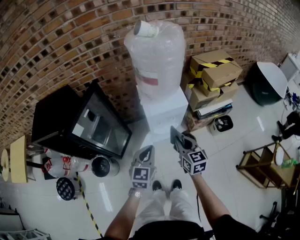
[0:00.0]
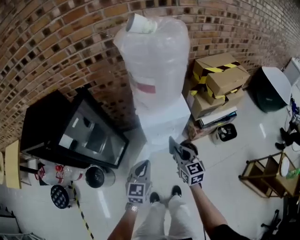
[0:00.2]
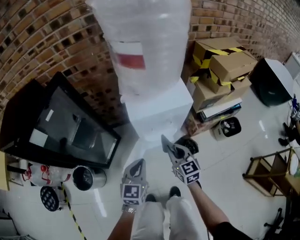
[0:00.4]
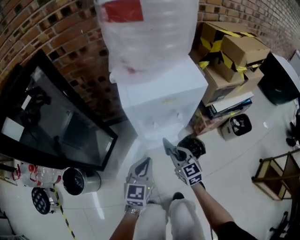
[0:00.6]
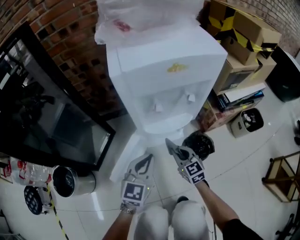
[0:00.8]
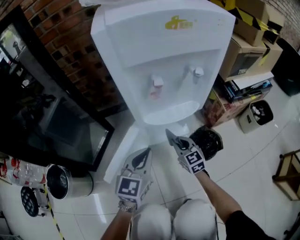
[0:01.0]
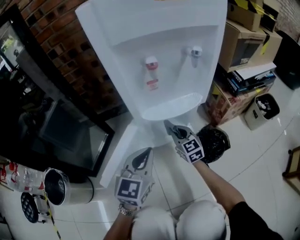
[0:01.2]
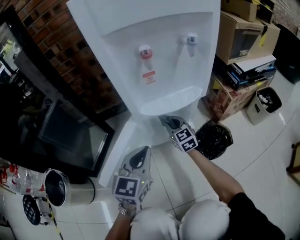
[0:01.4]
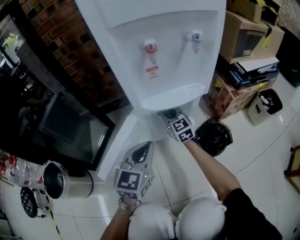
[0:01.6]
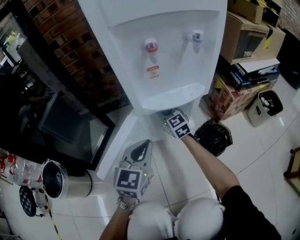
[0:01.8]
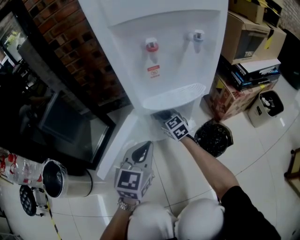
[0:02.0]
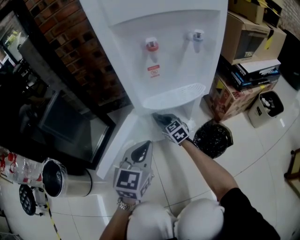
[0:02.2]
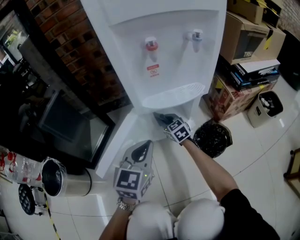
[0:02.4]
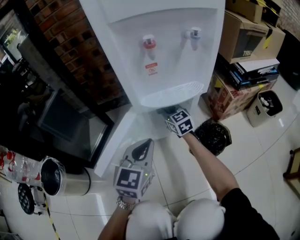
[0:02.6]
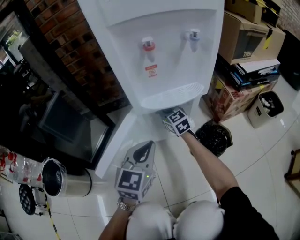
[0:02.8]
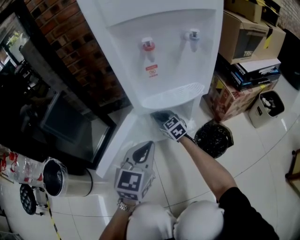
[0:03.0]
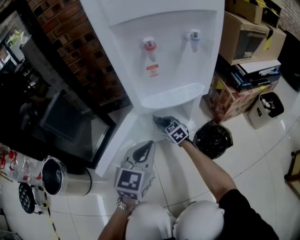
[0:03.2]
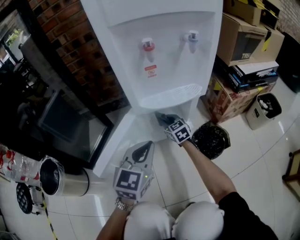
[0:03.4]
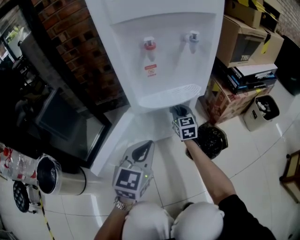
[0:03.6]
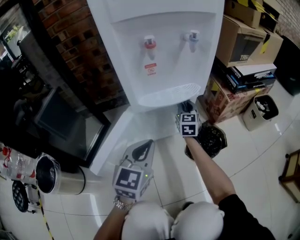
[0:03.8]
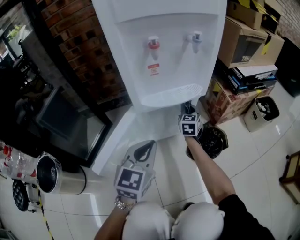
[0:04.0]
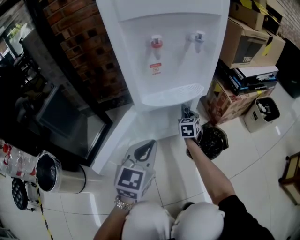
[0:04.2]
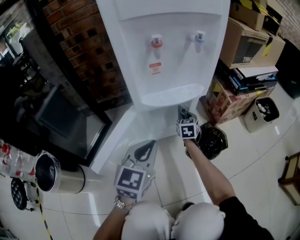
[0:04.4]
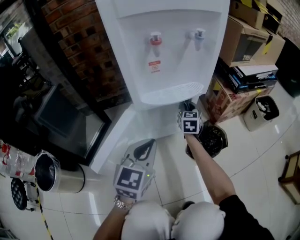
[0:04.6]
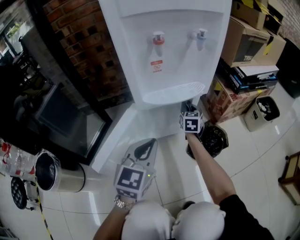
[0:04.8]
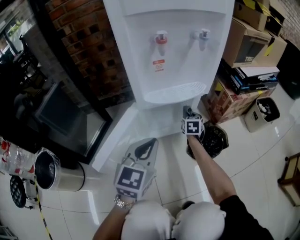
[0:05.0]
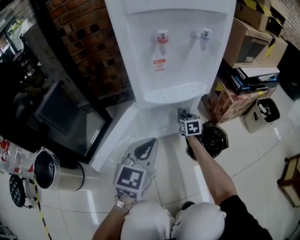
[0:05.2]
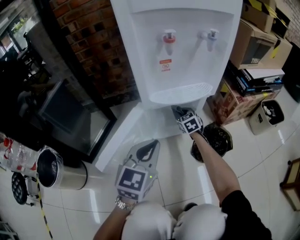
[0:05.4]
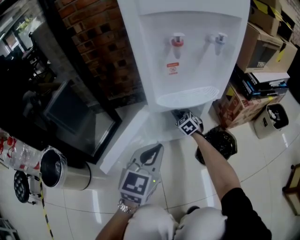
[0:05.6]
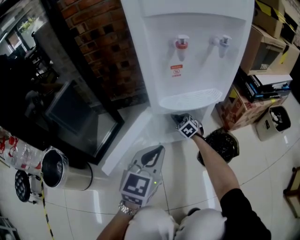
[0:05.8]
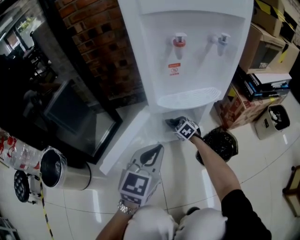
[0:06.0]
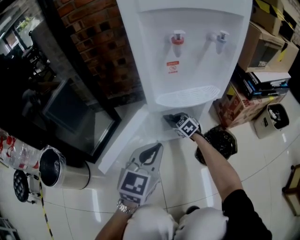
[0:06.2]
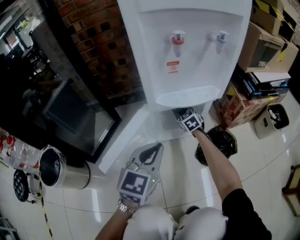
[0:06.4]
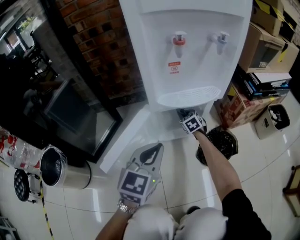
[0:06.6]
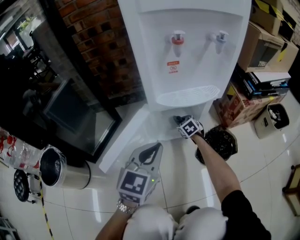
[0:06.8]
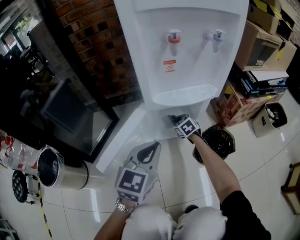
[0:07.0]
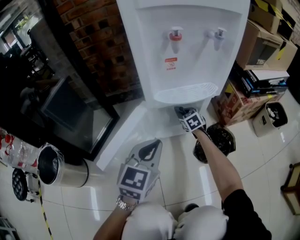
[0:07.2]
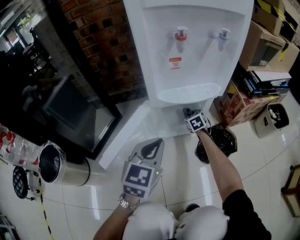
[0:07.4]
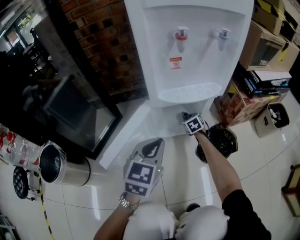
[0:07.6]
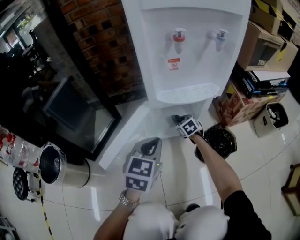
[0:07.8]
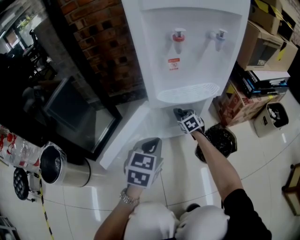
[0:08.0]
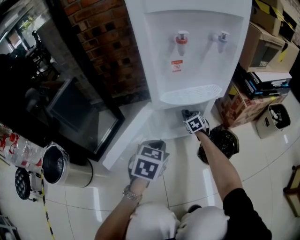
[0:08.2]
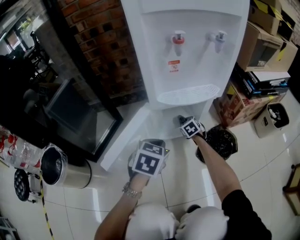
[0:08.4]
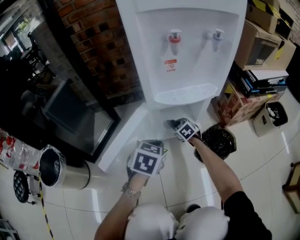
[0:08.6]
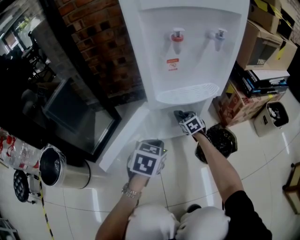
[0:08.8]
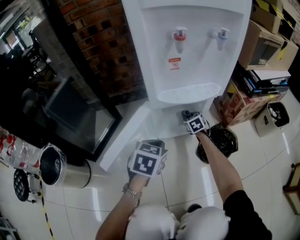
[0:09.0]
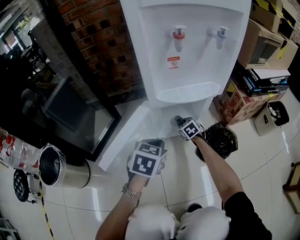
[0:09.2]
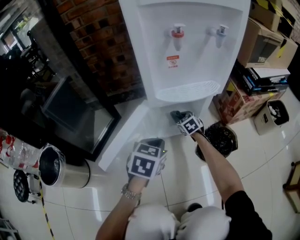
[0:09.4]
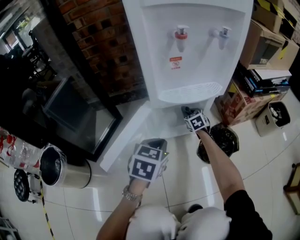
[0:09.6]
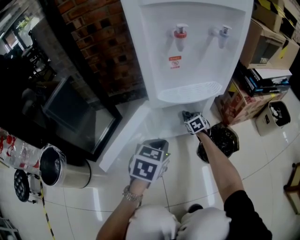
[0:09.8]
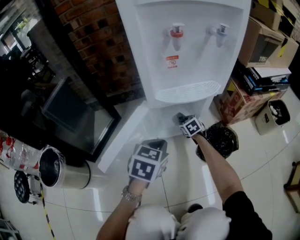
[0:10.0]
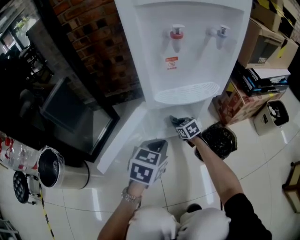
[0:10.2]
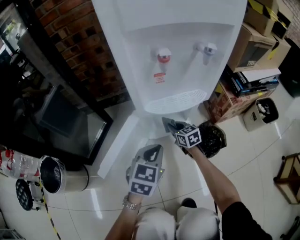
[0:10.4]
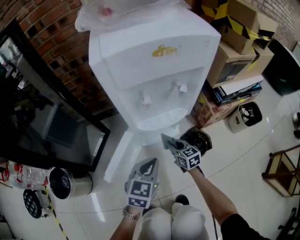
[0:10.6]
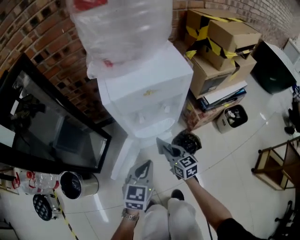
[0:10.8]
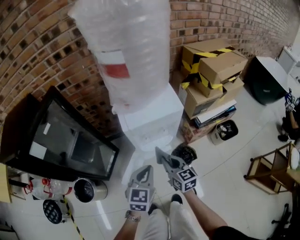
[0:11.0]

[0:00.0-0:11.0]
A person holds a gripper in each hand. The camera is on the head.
0:00.0 to 0:01.6: The two grippers go approximately 60 cm downward. The right gripper changes its angle by roughly 20 degrees.
0:01.6 to 0:03.2: The right gripper goes up and down, roughly 15 cm each way, reversing 2 times, and changes its angle by about 20 degrees.
0:03.2 to 0:04.8: The right gripper goes approximately 20 cm to the right and forward, and turns by about 40 degrees.
0:04.8 to 0:06.2: The right gripper travels to the left and downward by roughly 20 cm, and changes its angle by roughly 50 degrees.
0:06.2 to 0:07.8: The right gripper moves roughly 10 cm to the right and comes back.
0:07.8 to 0:09.4: The right gripper goes left and right, approximately 5 cm each way, reversing 3 times. The left gripper shifts about 5 cm downward.
0:09.4 to 0:11.0: The left gripper travels upward by approximately 50 cm; the right gripper moves upward and backward, approximately 60 cm, and rotates about 40 degrees.

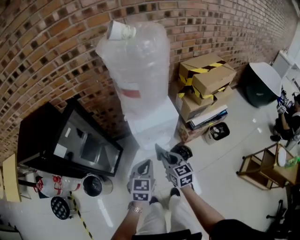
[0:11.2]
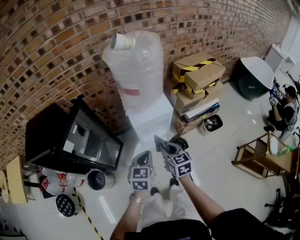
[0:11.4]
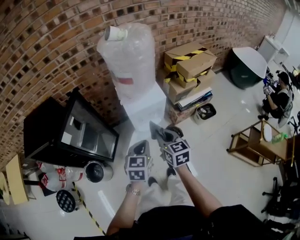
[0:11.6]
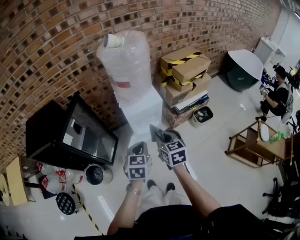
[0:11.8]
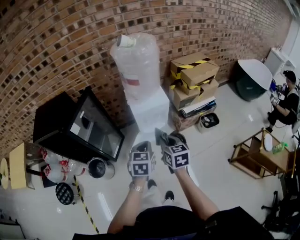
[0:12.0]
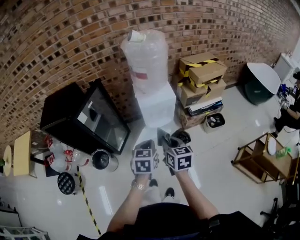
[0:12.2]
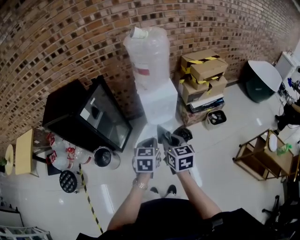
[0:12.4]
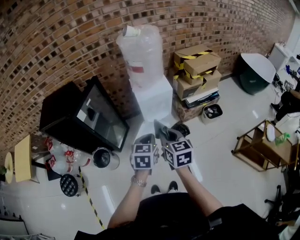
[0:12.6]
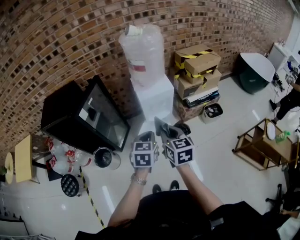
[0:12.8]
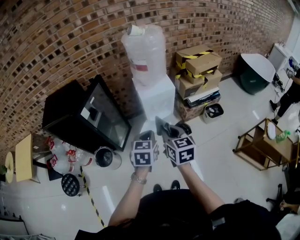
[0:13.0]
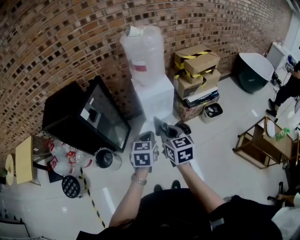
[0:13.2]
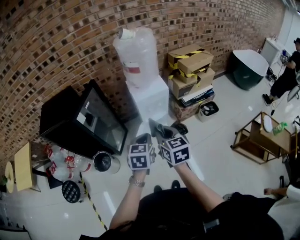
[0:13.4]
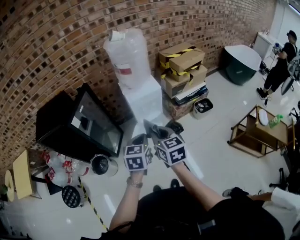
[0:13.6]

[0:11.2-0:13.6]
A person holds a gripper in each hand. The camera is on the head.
0:11.2 to 0:12.4: Both grippers travel together backward and upward, approximately 25 cm.
0:12.4 to 0:13.6: The right gripper moves roughly 5 cm.

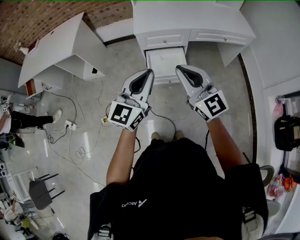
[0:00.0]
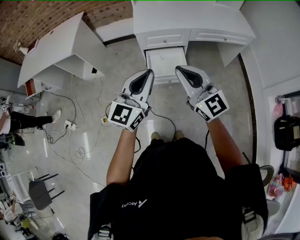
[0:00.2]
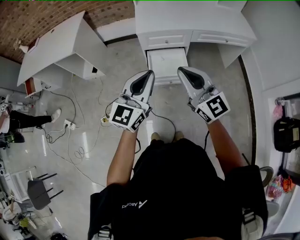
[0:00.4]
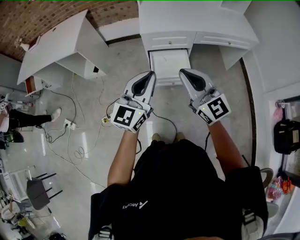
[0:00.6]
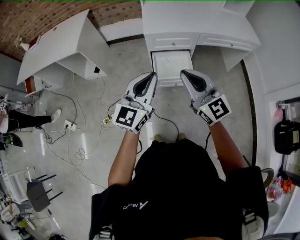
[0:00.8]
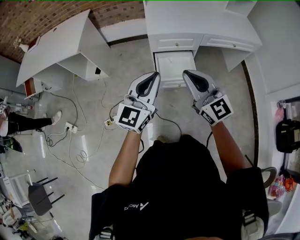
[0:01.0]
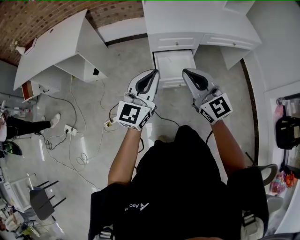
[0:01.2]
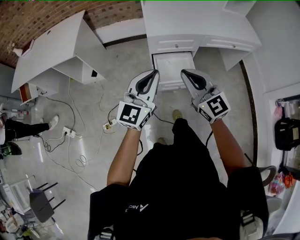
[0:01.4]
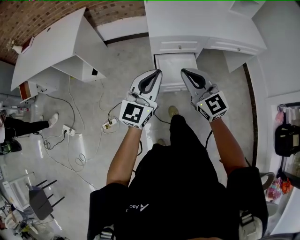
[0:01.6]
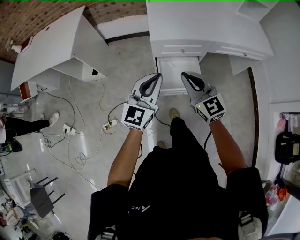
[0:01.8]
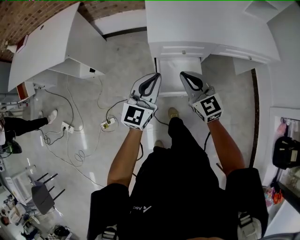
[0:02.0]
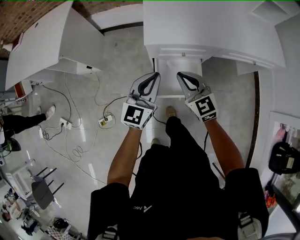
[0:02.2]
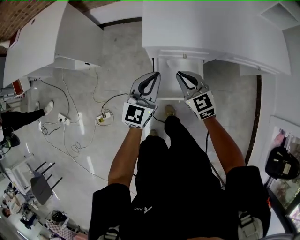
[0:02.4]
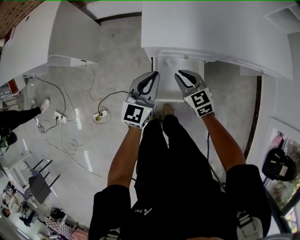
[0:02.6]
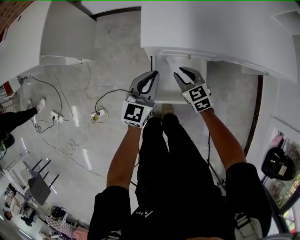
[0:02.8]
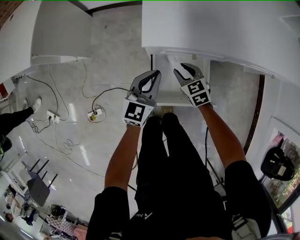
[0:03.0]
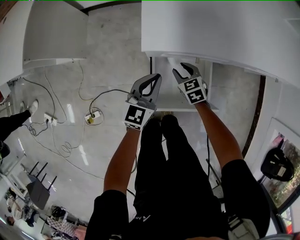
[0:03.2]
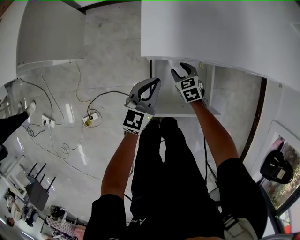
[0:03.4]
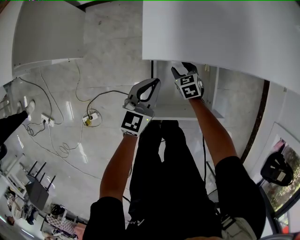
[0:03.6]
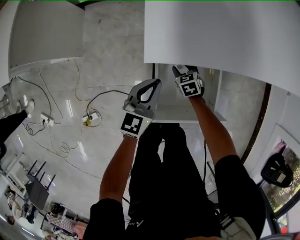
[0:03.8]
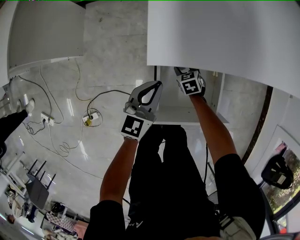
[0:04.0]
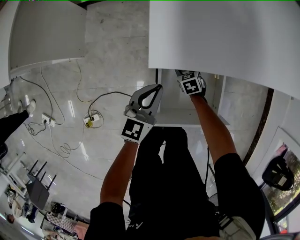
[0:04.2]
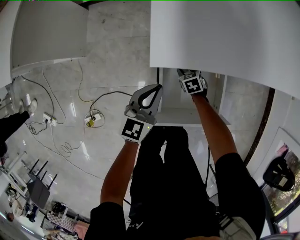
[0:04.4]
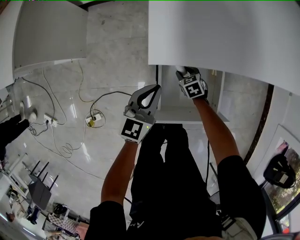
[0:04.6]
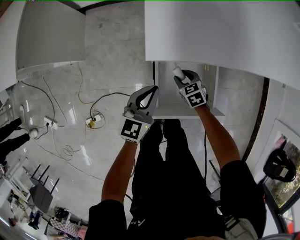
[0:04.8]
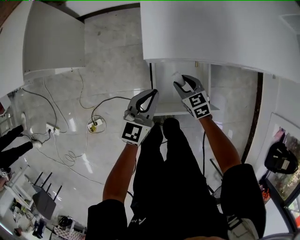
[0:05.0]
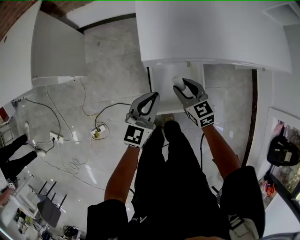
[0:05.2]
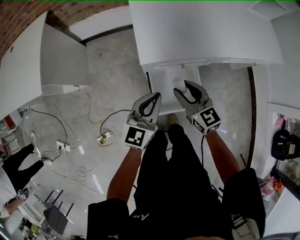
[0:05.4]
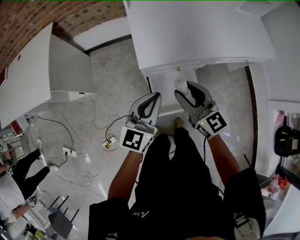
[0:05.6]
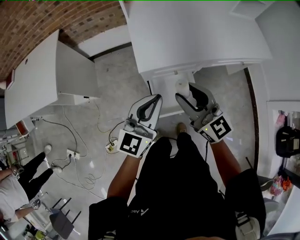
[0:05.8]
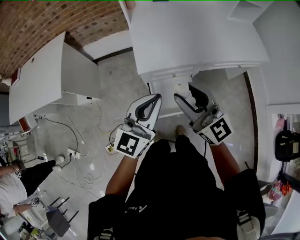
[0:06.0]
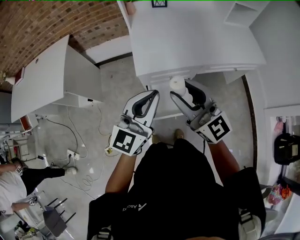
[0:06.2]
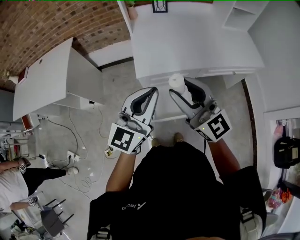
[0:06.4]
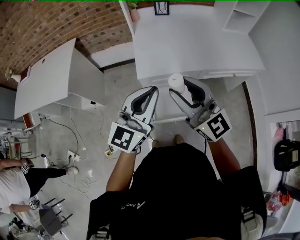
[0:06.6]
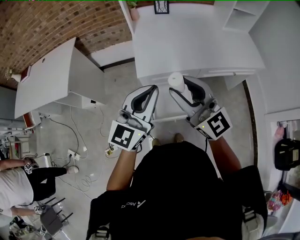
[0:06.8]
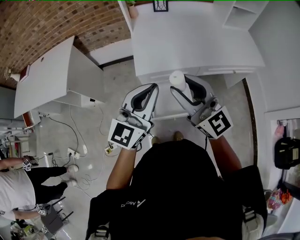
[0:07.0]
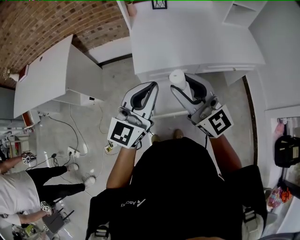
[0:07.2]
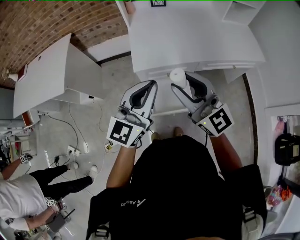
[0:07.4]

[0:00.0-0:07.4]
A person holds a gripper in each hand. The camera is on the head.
0:00.0 to 0:01.4: The left gripper heads to the left and forward, covering roughly 15 cm. Meanwhile the right gripper heads to the left, forward and downward, covering some 15 cm.
0:01.4 to 0:03.0: Both grippers move downward and forward, about 60 cm. The left gripper turns by about 20 degrees, while the right gripper points its fingers roughly 40 degrees further downward, and opens its fingers.
0:03.0 to 0:04.4: The right gripper is displaced downward by about 25 cm, and rotates some 20 degrees; the left gripper goes some 15 cm downward.
0:04.4 to 0:06.0: The right gripper heads upward, covering about 80 cm, and tilts its fingers roughly 70 degrees upward, while the left gripper is displaced upward by about 50 cm, and changes its angle by approximately 30 degrees.
0:06.0 to 0:07.4: The two grippers go some 5 cm upward.

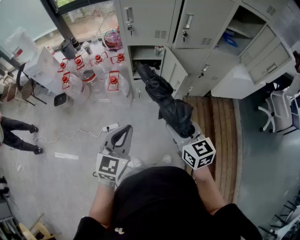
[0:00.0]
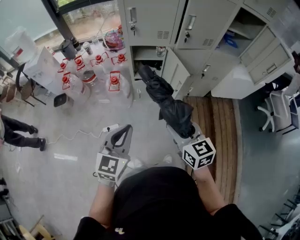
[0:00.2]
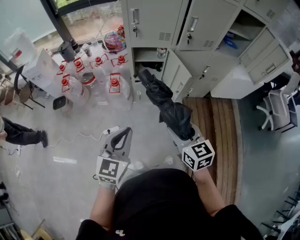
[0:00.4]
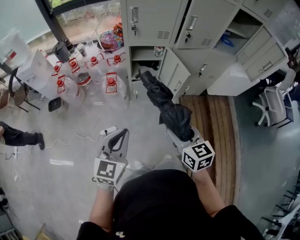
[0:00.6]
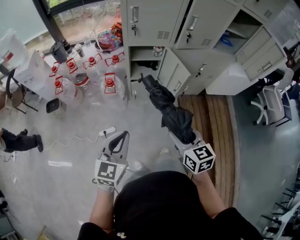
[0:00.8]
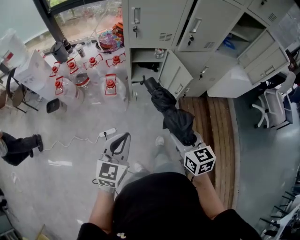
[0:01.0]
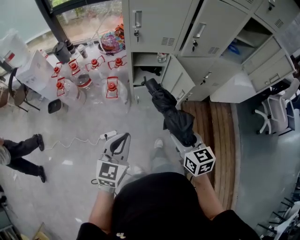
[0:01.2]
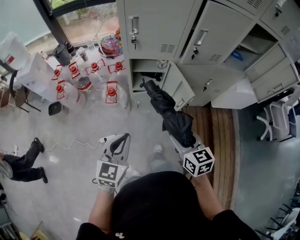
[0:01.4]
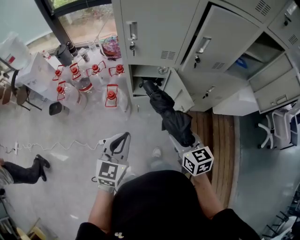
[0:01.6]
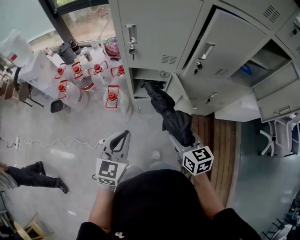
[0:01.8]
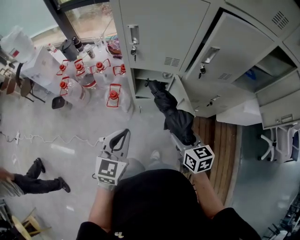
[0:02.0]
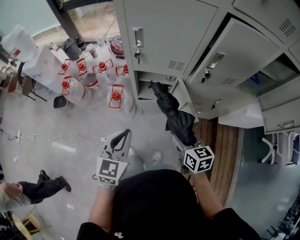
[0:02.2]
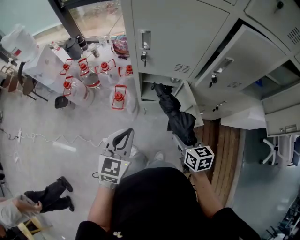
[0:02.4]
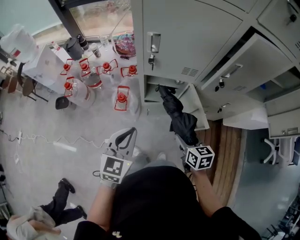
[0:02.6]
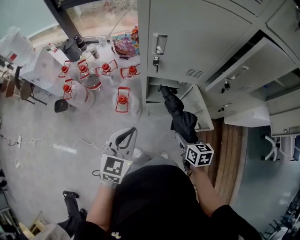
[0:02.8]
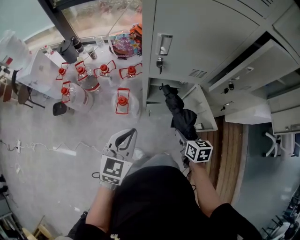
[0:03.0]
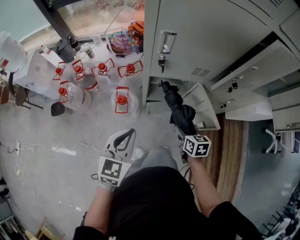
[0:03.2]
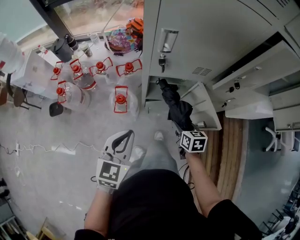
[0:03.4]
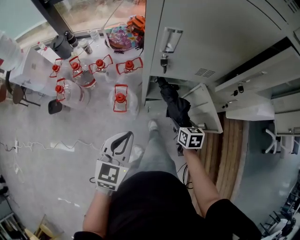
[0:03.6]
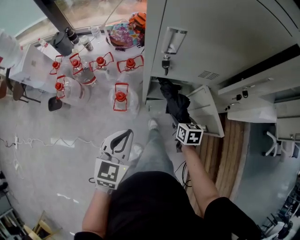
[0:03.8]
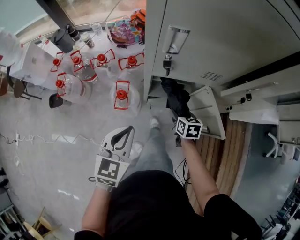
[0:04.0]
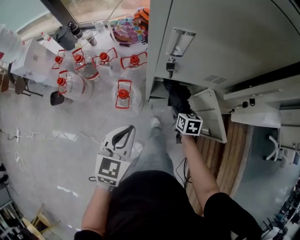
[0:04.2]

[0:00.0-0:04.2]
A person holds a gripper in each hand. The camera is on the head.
0:00.0 to 0:01.4: The right gripper goes some 10 cm forward and downward, while the left gripper travels forward by approximately 10 cm.
0:01.4 to 0:02.8: The left gripper moves forward, roughly 20 cm. The right gripper is displaced forward and downward by about 20 cm.
0:02.8 to 0:04.2: The right gripper travels forward and downward by about 25 cm. The left gripper shifts some 10 cm forward and downward.
